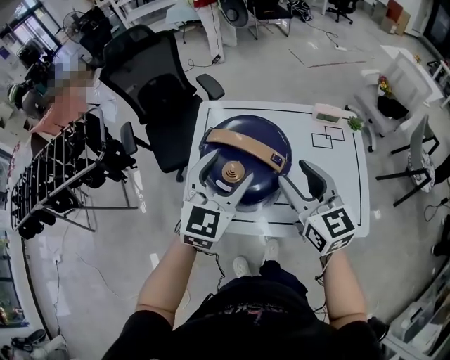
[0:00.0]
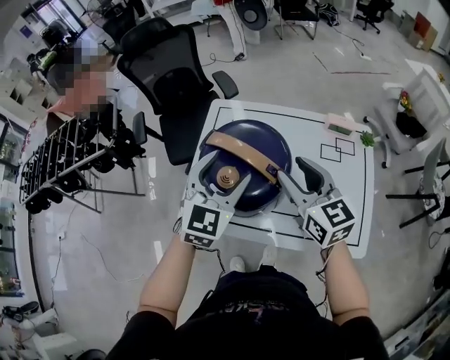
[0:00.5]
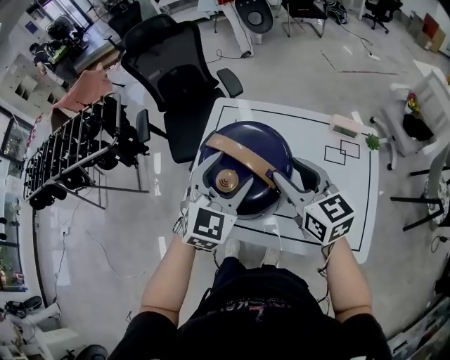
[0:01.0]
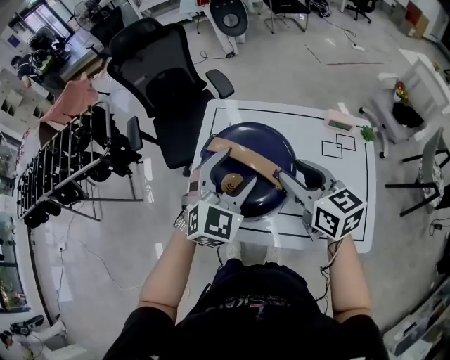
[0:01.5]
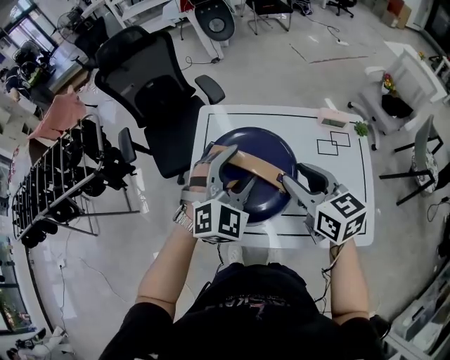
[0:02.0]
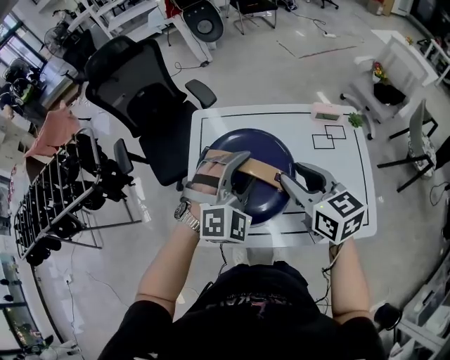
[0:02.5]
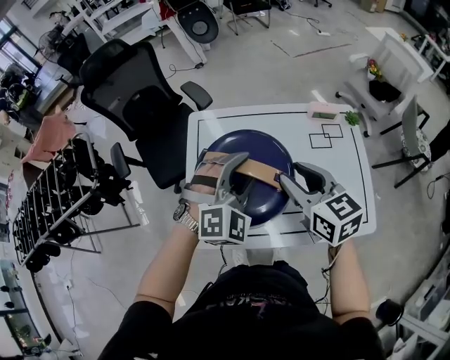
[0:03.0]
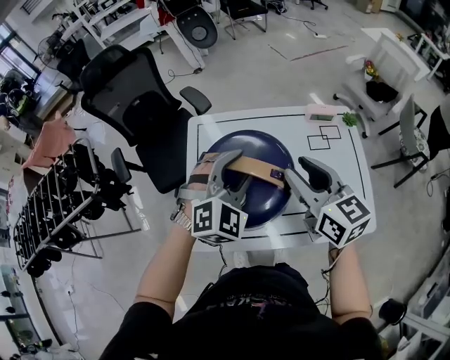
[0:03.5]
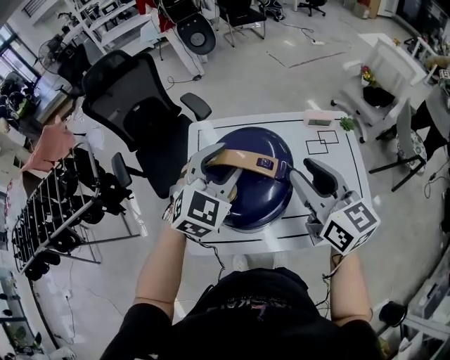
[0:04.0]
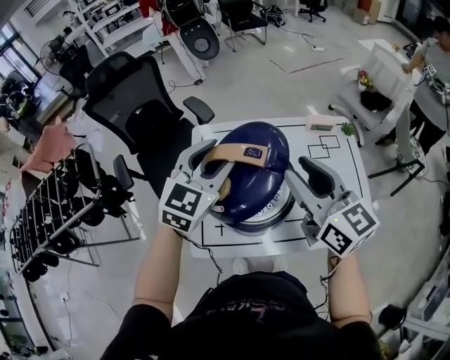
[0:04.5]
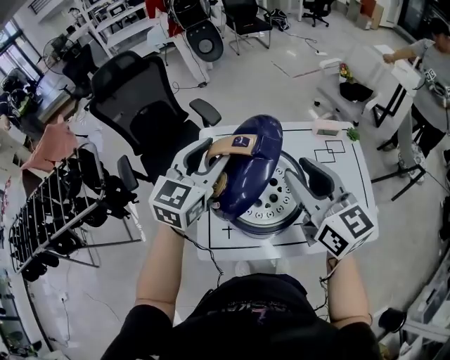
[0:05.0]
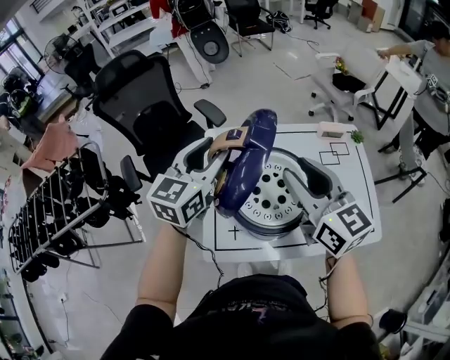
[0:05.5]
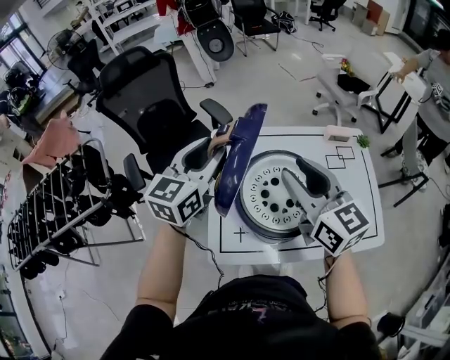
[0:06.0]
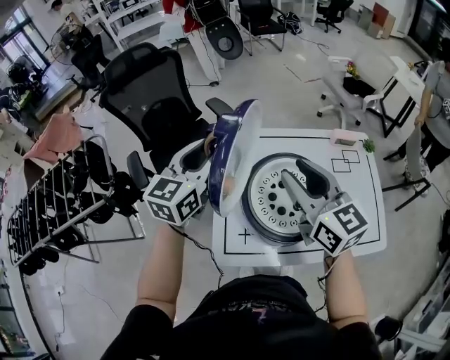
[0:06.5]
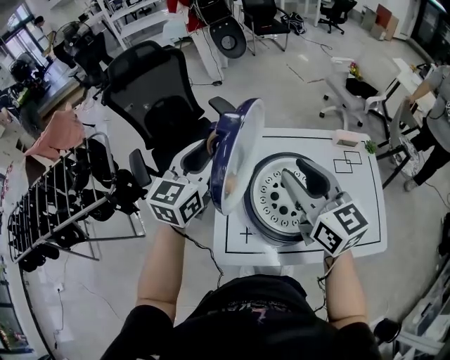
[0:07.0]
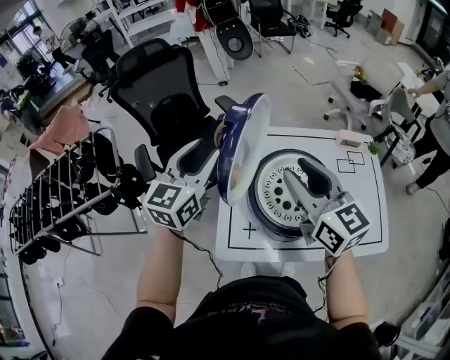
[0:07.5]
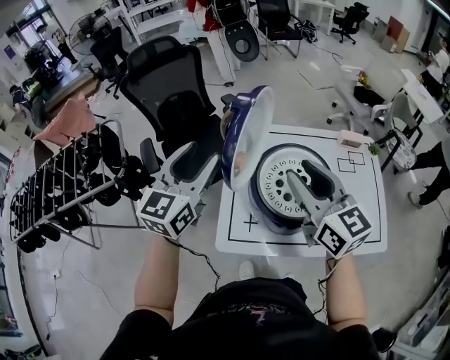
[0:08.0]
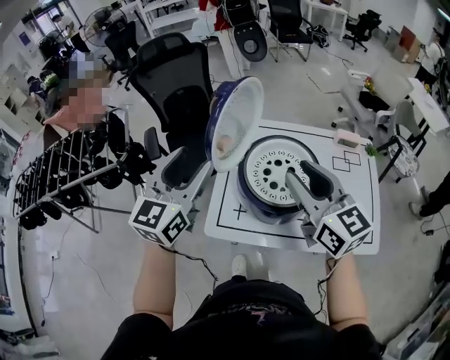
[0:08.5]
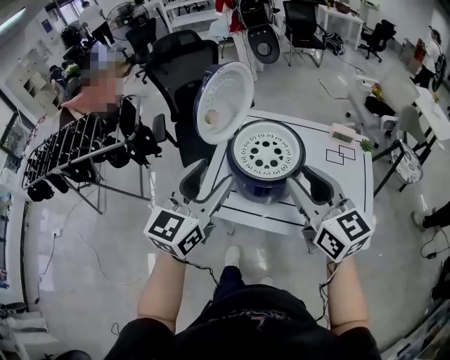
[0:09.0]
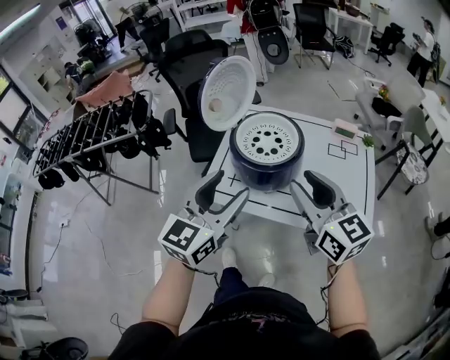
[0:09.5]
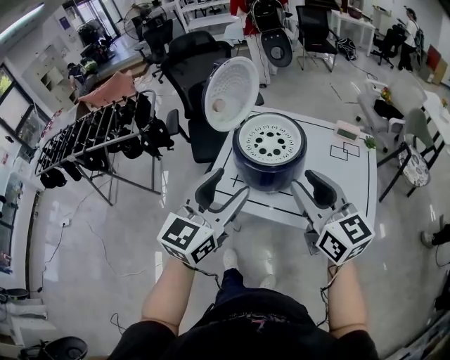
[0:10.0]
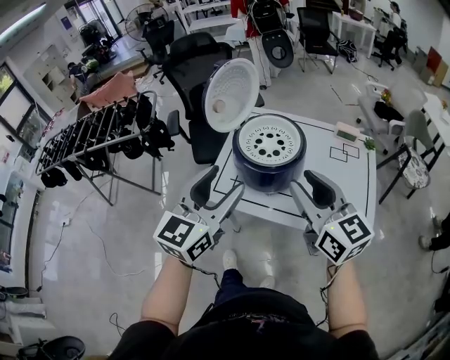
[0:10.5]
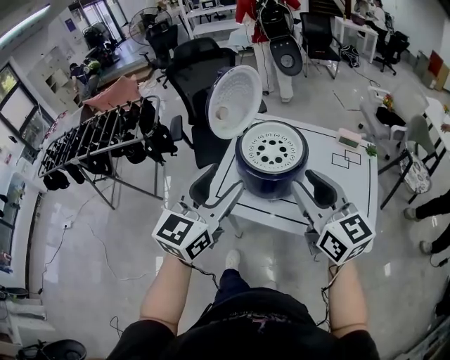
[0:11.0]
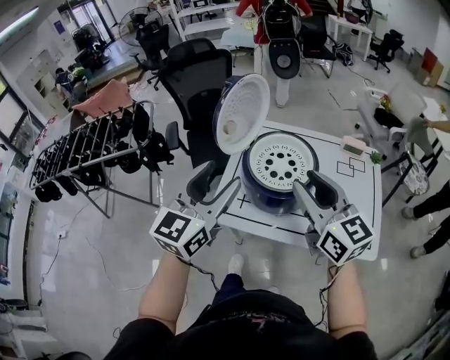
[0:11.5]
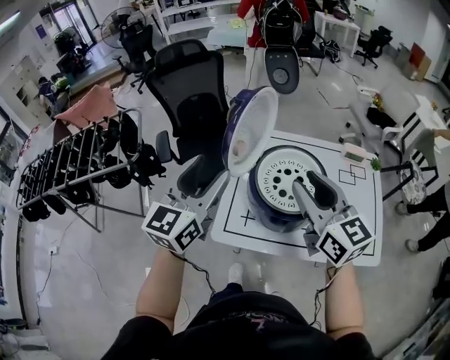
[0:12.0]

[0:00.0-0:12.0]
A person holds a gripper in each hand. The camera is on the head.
0:00.0 to 0:02.0: The grippers both shift forward by about 5 cm. The left gripper turns by roughly 30 degrees.
0:02.0 to 0:04.0: The right gripper moves upward, some 10 cm; the left gripper shifts by roughly 5 cm.
0:04.0 to 0:06.0: Both grippers move to the left, approximately 15 cm. The left gripper swivels some 40 degrees.
0:06.0 to 0:08.0: The right gripper changes place by about 5 cm; the left gripper moves backward and to the left, roughly 10 cm.
0:08.0 to 0:10.0: The two grippers go about 30 cm backward and to the right.
0:10.0 to 0:12.0: The grippers both shift forward and to the left by some 20 cm.

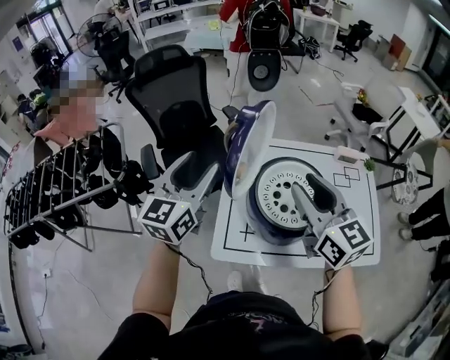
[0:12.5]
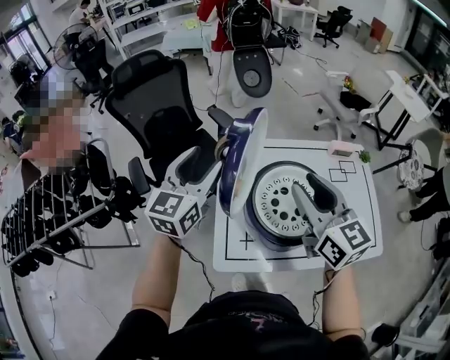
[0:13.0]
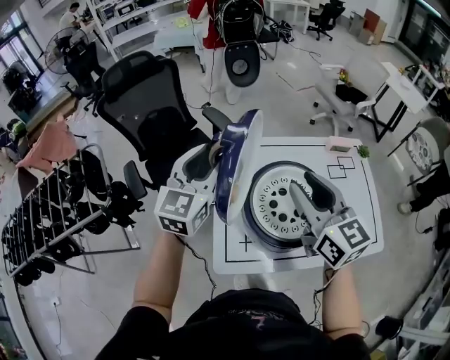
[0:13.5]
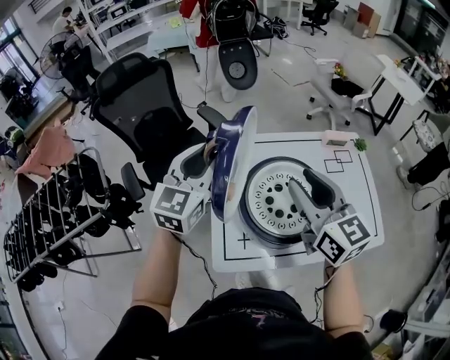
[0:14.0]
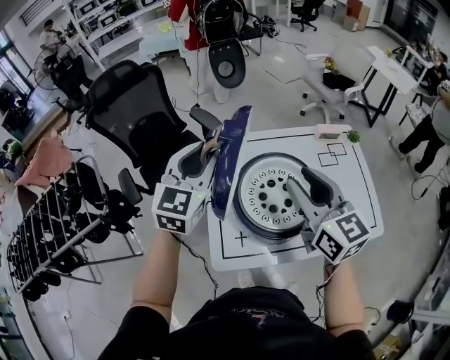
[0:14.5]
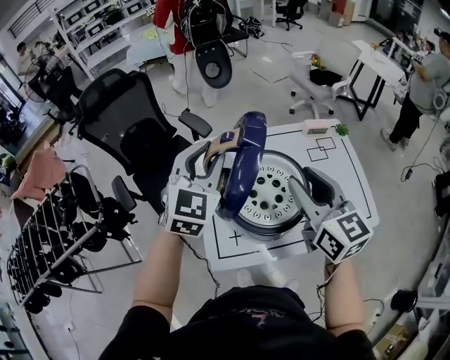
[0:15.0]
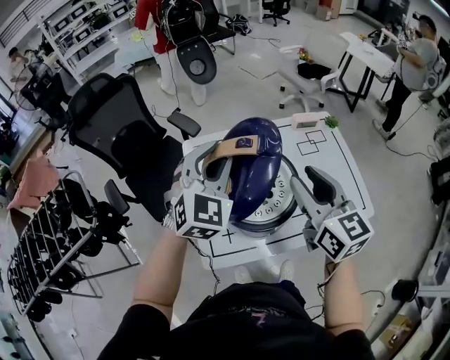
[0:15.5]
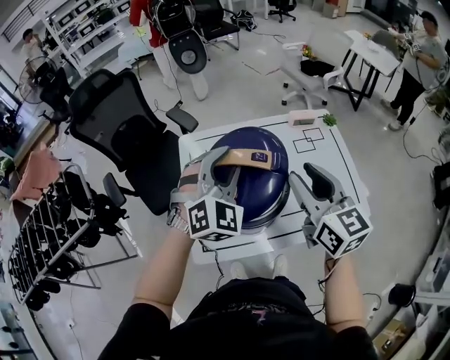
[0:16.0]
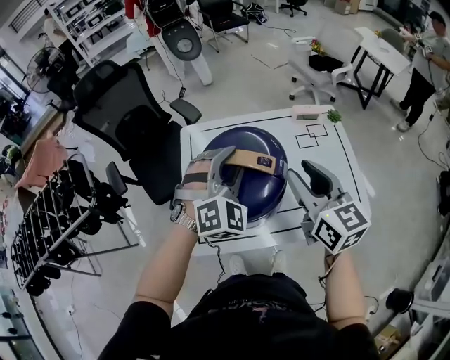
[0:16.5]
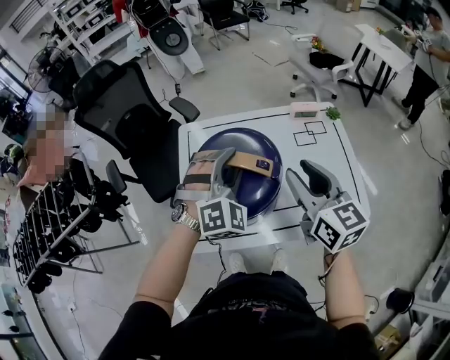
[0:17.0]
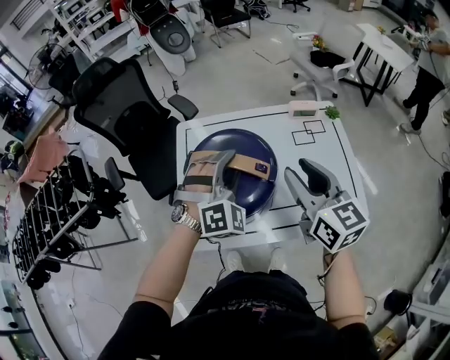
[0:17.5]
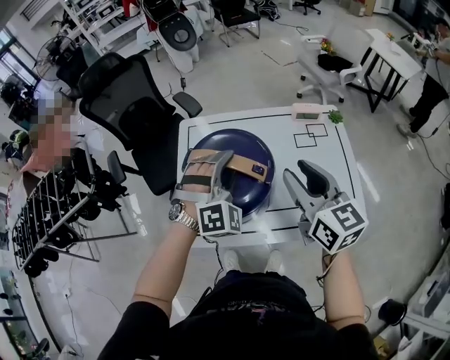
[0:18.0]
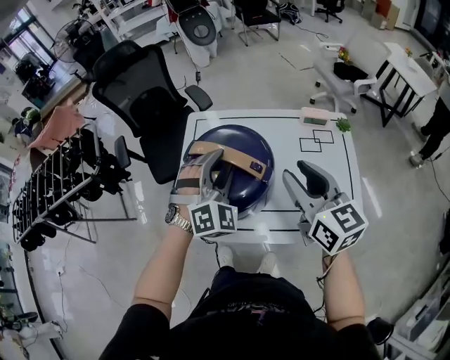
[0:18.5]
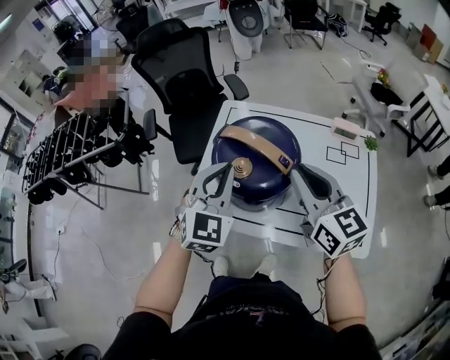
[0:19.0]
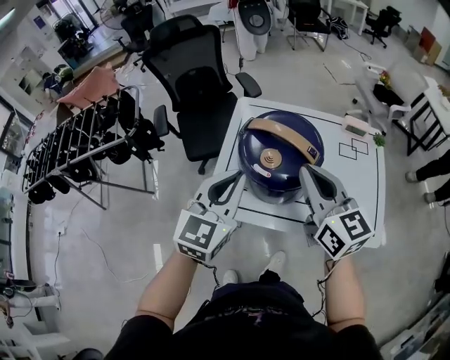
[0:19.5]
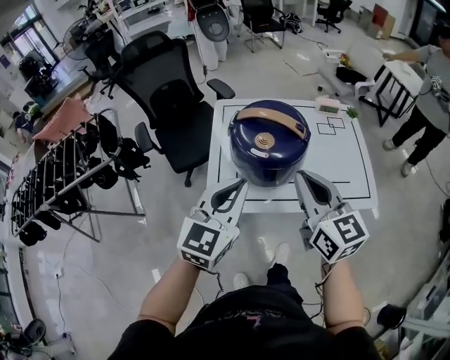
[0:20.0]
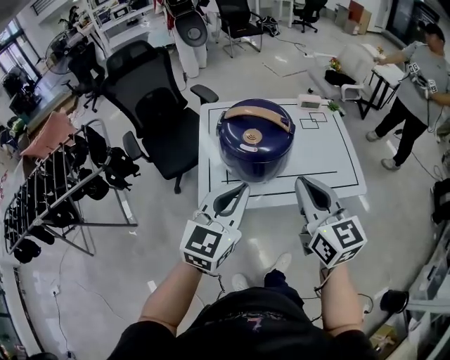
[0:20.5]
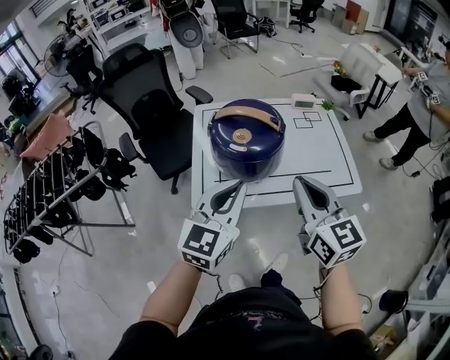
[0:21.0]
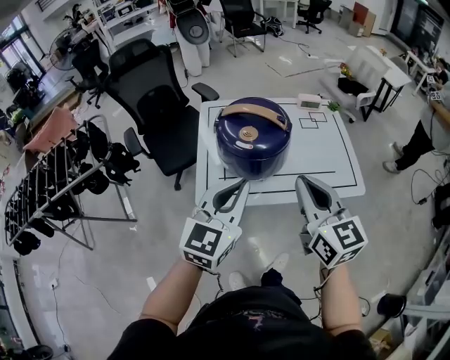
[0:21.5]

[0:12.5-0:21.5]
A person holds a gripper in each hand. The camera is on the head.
0:12.5 to 0:14.5: The right gripper shifts by approximately 5 cm, while the left gripper shifts approximately 10 cm forward and to the right, turns by approximately 20 degrees, and closes.
0:14.5 to 0:17.0: The right gripper moves to the right, some 15 cm. The left gripper travels to the right and downward by approximately 20 cm, and rolls clockwise, seen from behind, by approximately 50 degrees.
0:17.0 to 0:19.5: The left gripper goes some 20 cm backward and to the left, rolls counterclockwise, seen from behind, by roughly 60 degrees, and closes its fingers. Meanwhile the right gripper shifts approximately 10 cm to the left, turns by roughly 20 degrees, and closes.
0:19.5 to 0:21.5: Both grippers travel together backward, about 15 cm.

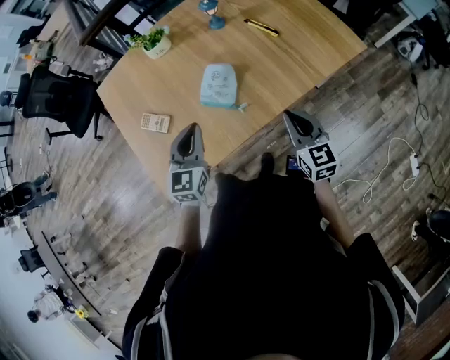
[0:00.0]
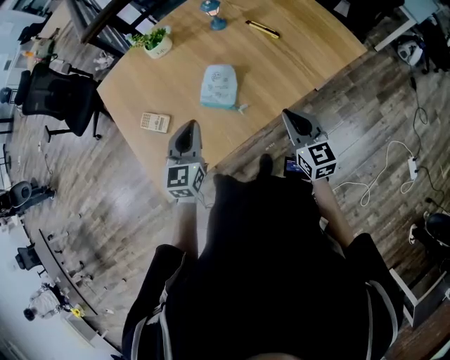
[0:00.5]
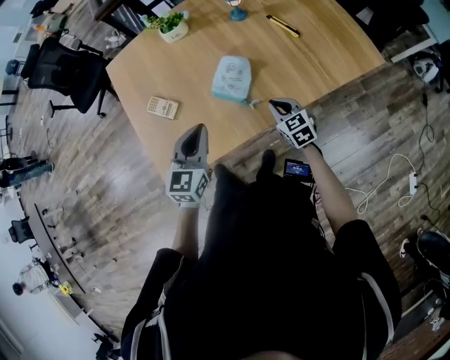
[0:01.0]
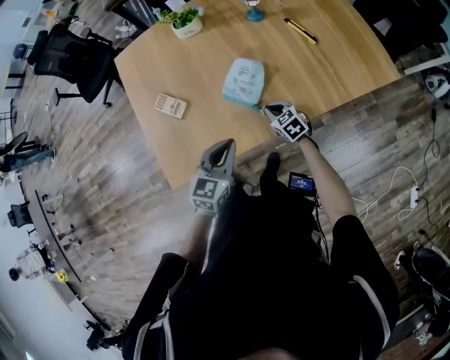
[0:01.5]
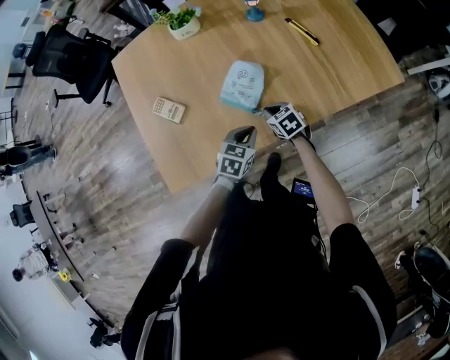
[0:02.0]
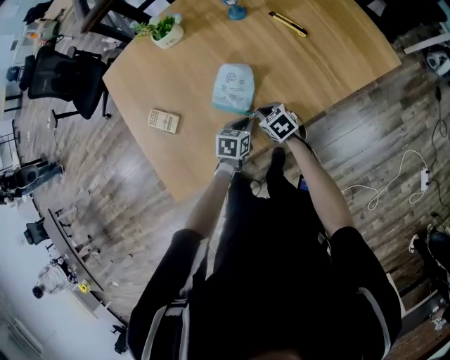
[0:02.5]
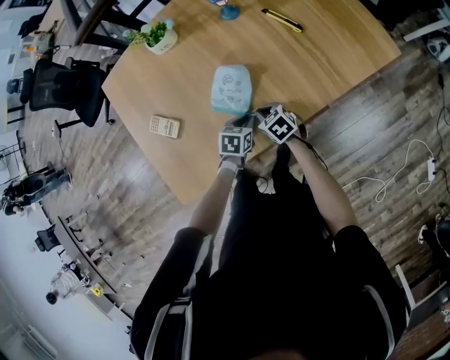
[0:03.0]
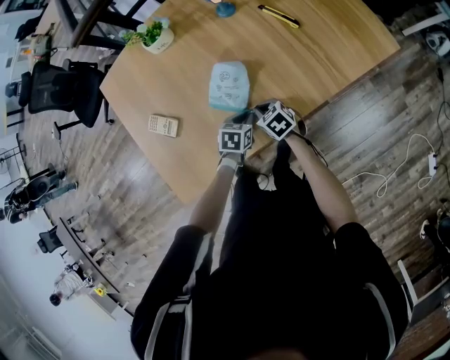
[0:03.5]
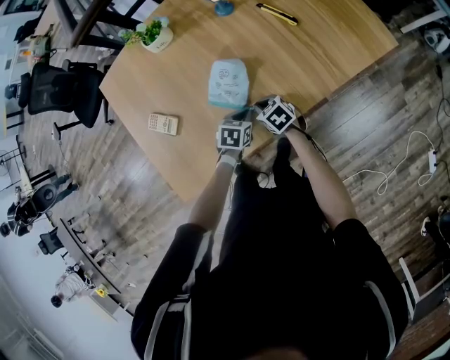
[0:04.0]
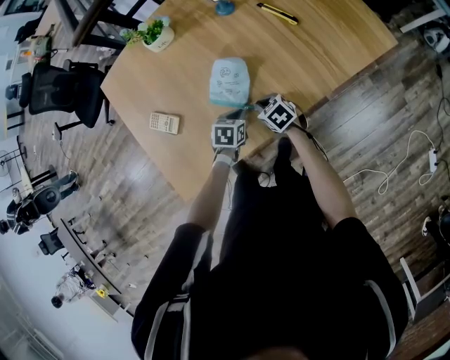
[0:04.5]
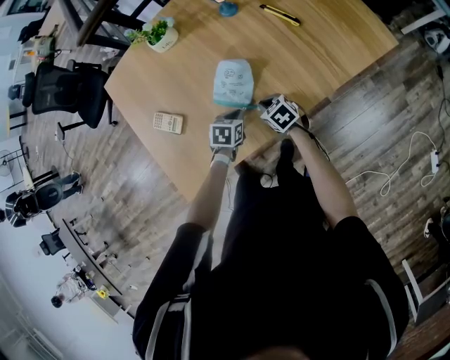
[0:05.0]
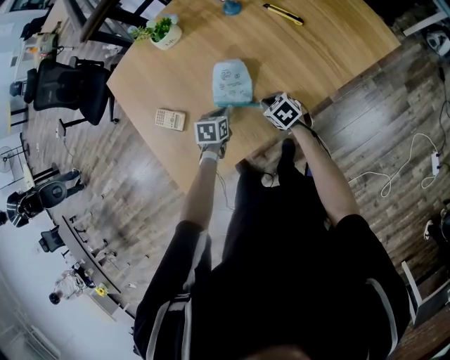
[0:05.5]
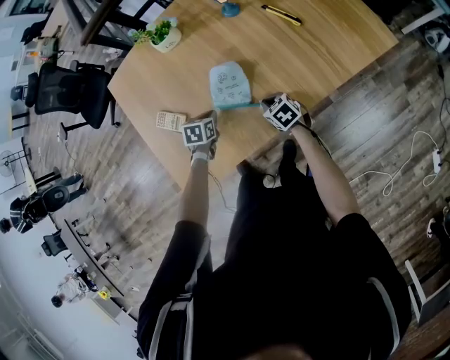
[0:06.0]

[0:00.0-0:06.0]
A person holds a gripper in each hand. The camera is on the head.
0:00.0 to 0:02.0: The left gripper travels downward and to the right by some 20 cm, and changes its angle by some 30 degrees. Meanwhile the right gripper travels downward, forward and to the left by approximately 30 cm, and angles its fingers downward, by about 30 degrees.
0:02.0 to 0:04.0: The left gripper shifts about 5 cm downward.
0:04.0 to 0:06.0: The left gripper is displaced to the left and forward by approximately 15 cm.
